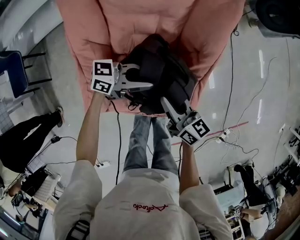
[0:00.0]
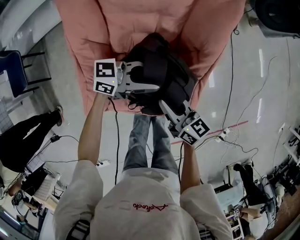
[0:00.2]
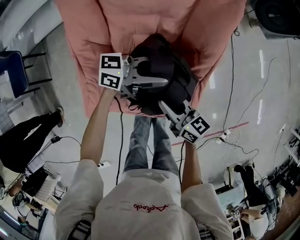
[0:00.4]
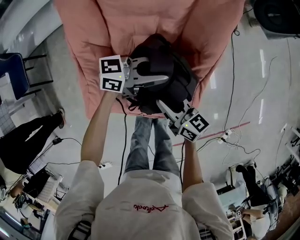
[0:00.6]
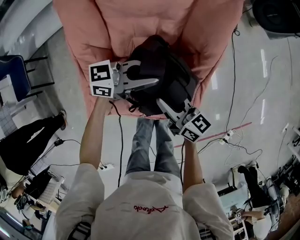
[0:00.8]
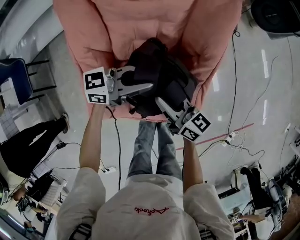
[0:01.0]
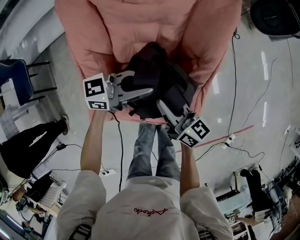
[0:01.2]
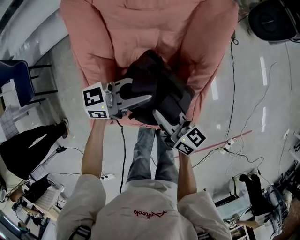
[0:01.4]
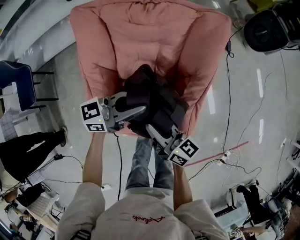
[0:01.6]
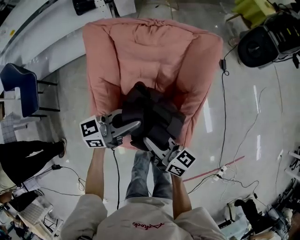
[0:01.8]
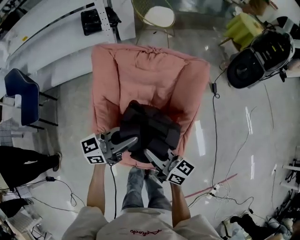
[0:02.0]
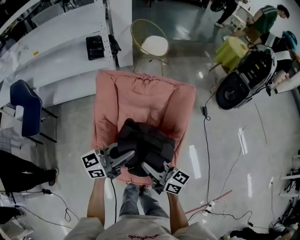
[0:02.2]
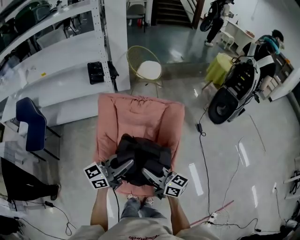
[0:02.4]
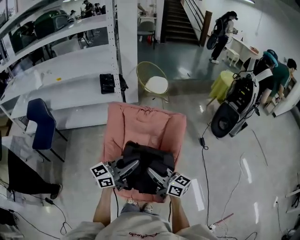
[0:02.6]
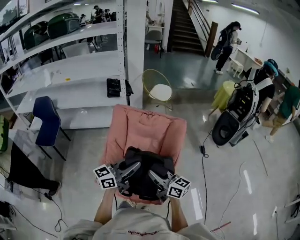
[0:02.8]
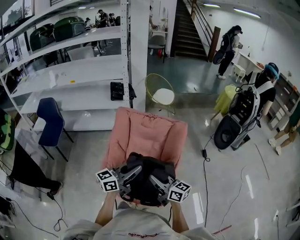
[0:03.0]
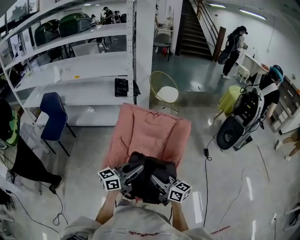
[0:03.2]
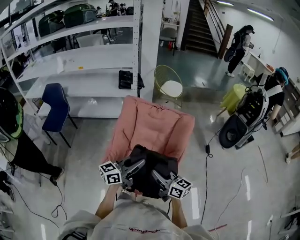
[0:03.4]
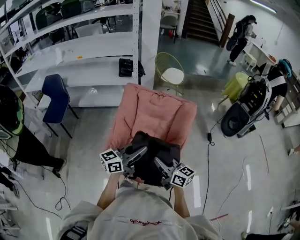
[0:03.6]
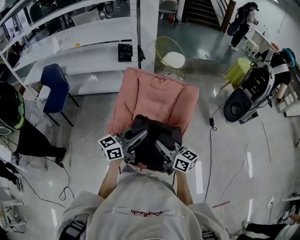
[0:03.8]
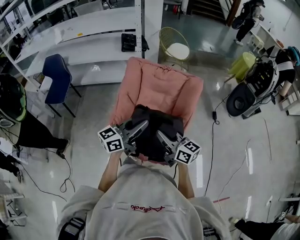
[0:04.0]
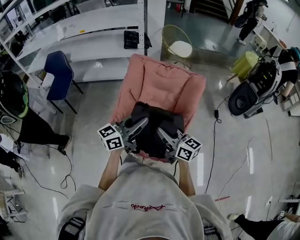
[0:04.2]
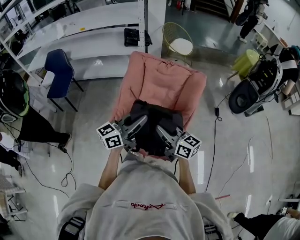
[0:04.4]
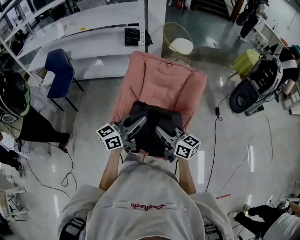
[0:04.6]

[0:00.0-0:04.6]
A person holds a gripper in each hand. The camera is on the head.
0:00.0 to 0:01.6: The right gripper moves upward, approximately 5 cm; the left gripper shifts roughly 10 cm upward, and swivels about 20 degrees.
0:01.6 to 0:03.0: The two grippers go approximately 30 cm upward and backward. The left gripper changes its angle by roughly 30 degrees.
0:03.0 to 0:04.6: The grippers move only a little.

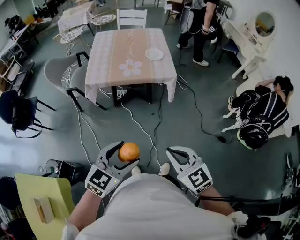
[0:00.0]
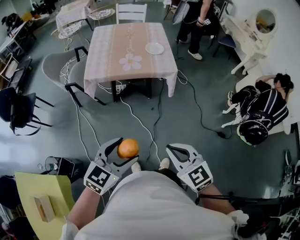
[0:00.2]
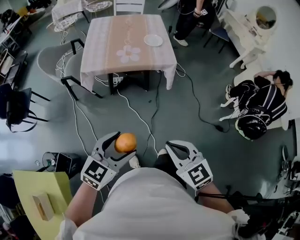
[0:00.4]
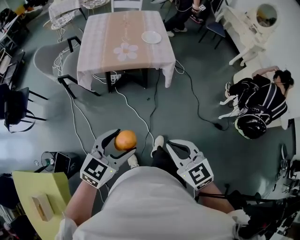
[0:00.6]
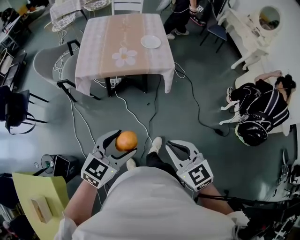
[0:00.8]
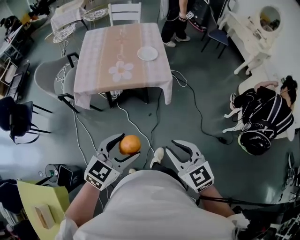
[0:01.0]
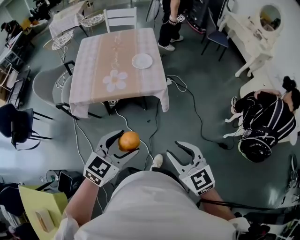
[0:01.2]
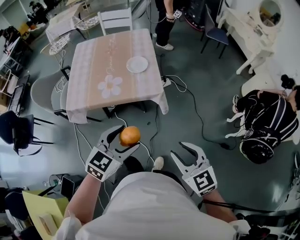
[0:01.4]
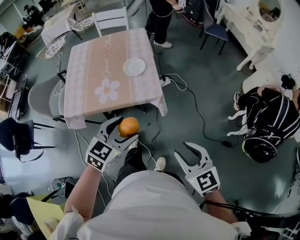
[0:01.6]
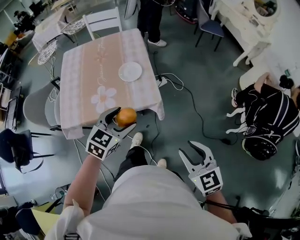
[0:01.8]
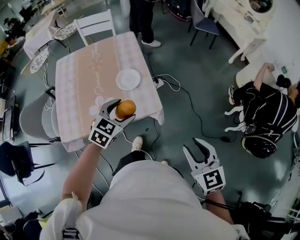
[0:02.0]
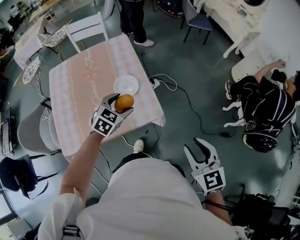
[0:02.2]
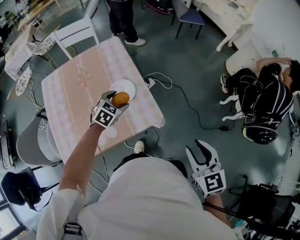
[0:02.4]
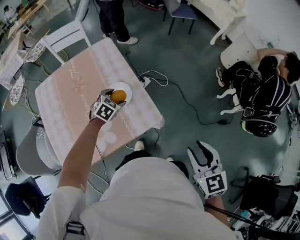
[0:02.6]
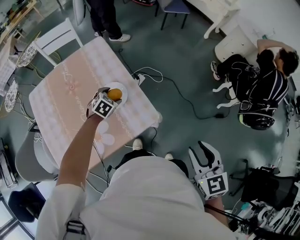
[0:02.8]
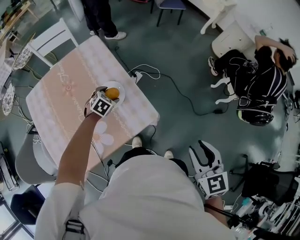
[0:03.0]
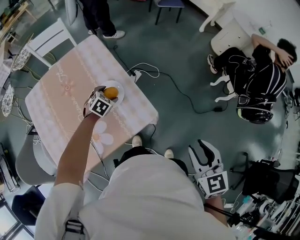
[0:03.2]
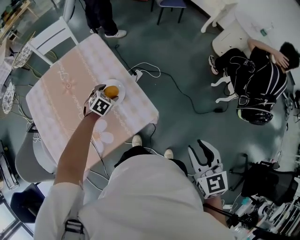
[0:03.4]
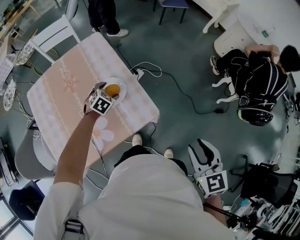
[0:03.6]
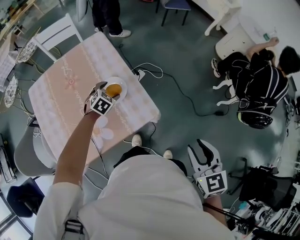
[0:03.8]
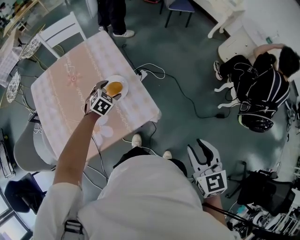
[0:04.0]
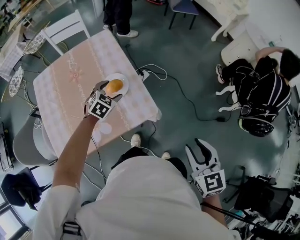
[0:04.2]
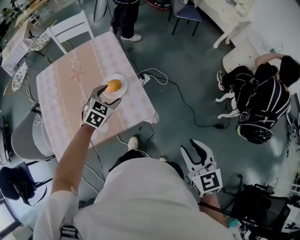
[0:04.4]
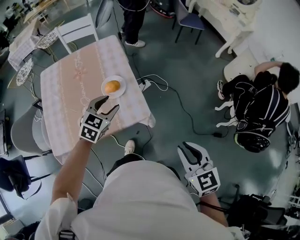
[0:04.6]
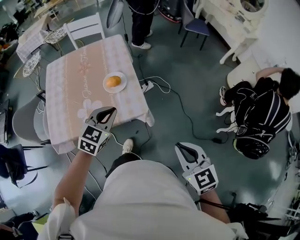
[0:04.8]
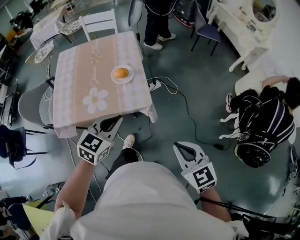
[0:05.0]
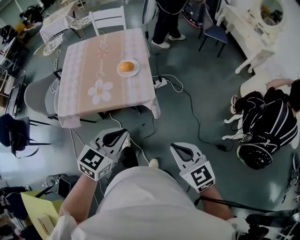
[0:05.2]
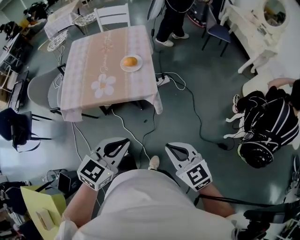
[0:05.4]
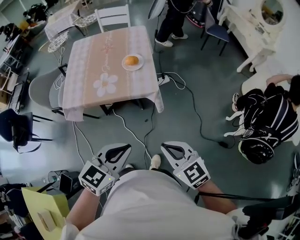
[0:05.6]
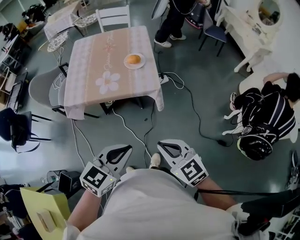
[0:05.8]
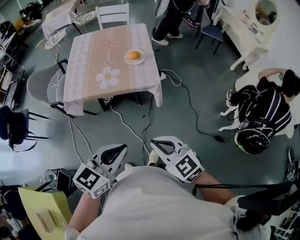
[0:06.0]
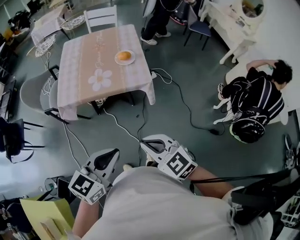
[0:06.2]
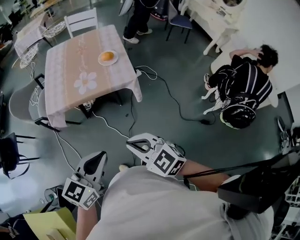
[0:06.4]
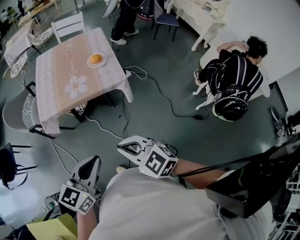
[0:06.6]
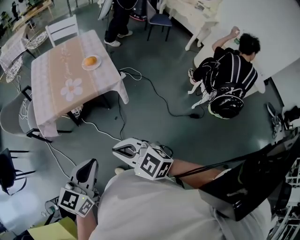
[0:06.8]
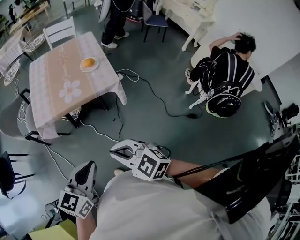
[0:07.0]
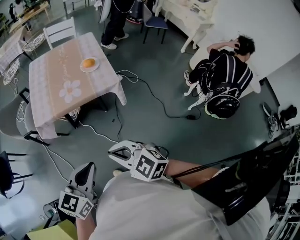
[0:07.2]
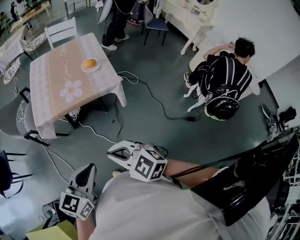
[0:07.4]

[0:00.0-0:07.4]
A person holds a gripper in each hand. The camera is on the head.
0:00.0 to 0:01.4: Both grippers travel together forward and to the right, roughly 30 cm. The right gripper opens up.
0:01.4 to 0:03.0: The right gripper ends up roughly 20 cm from where it was, and changes its angle by roughly 50 degrees, while the left gripper ends up roughly 60 cm from where it was, and tilts its fingers approximately 30 degrees downward.
0:03.0 to 0:04.4: The left gripper goes roughly 15 cm upward and backward.
0:04.4 to 0:06.0: The left gripper is displaced backward by some 50 cm, turns by roughly 40 degrees, and closes up. The right gripper is displaced backward and to the left by some 25 cm, swivels roughly 50 degrees, and closes.
0:06.0 to 0:07.4: The right gripper goes some 10 cm to the left. Meanwhile the left gripper moves to the left and backward, roughly 10 cm.

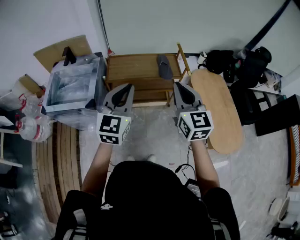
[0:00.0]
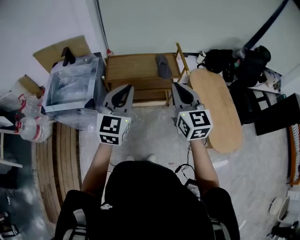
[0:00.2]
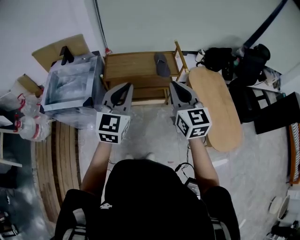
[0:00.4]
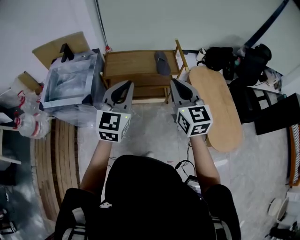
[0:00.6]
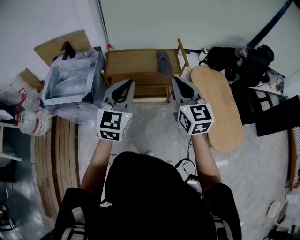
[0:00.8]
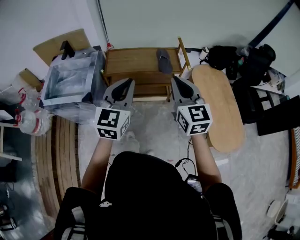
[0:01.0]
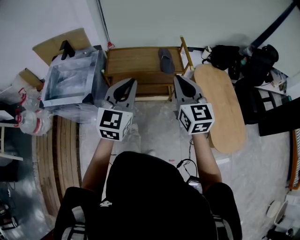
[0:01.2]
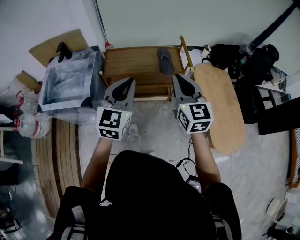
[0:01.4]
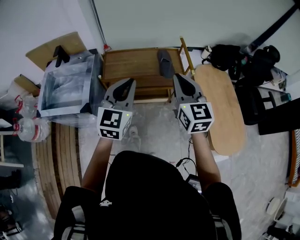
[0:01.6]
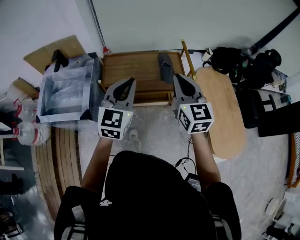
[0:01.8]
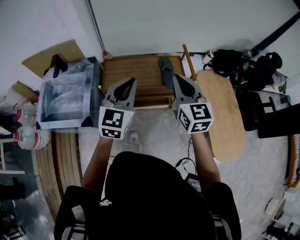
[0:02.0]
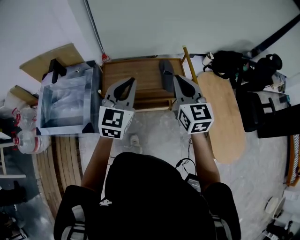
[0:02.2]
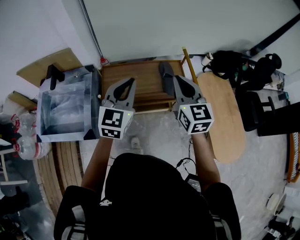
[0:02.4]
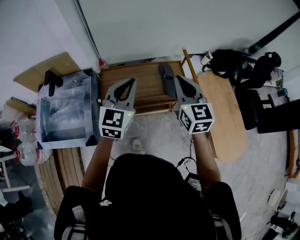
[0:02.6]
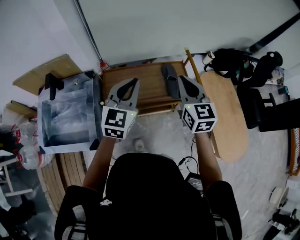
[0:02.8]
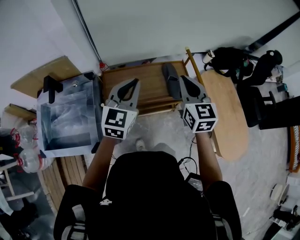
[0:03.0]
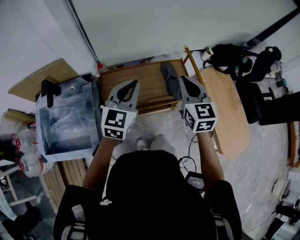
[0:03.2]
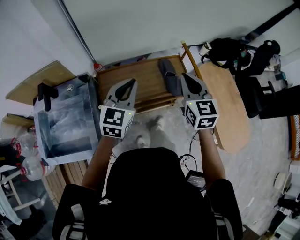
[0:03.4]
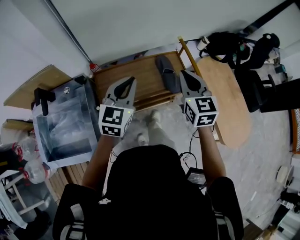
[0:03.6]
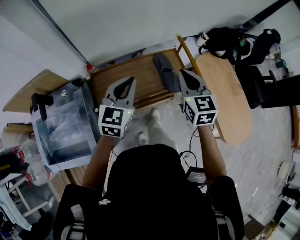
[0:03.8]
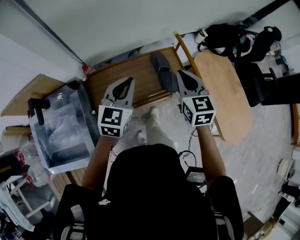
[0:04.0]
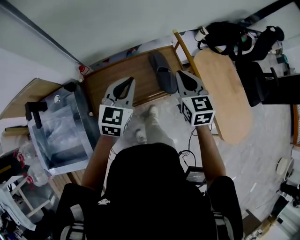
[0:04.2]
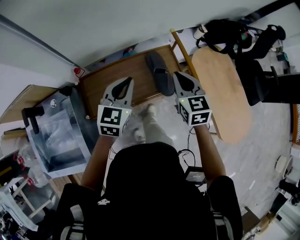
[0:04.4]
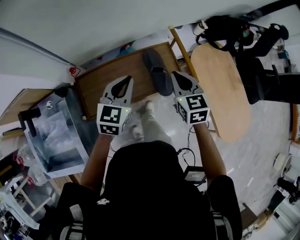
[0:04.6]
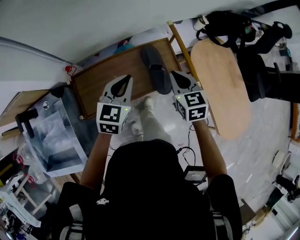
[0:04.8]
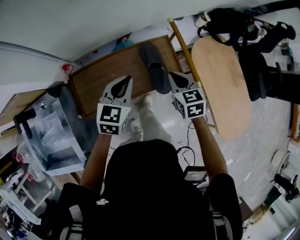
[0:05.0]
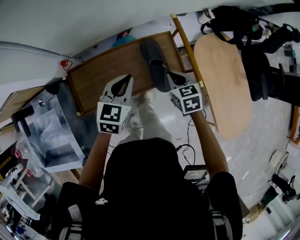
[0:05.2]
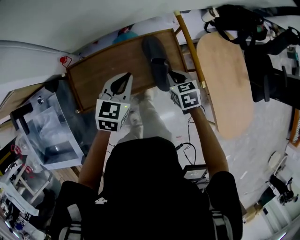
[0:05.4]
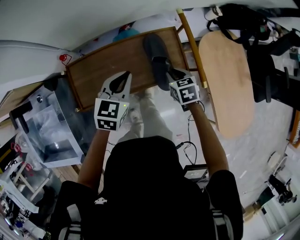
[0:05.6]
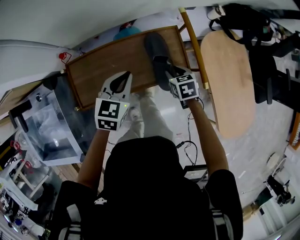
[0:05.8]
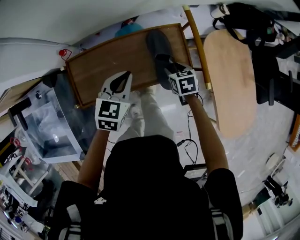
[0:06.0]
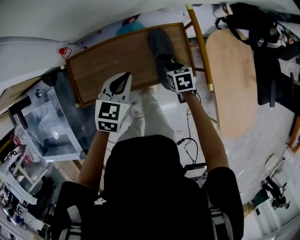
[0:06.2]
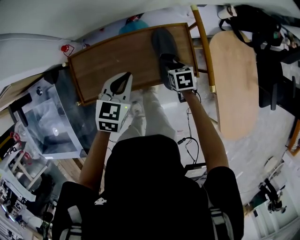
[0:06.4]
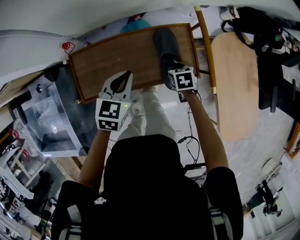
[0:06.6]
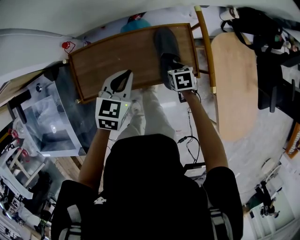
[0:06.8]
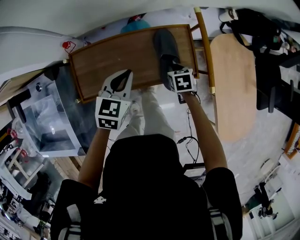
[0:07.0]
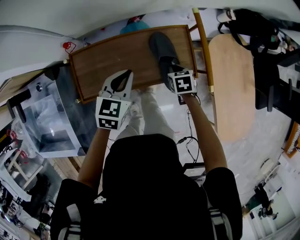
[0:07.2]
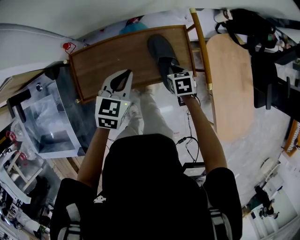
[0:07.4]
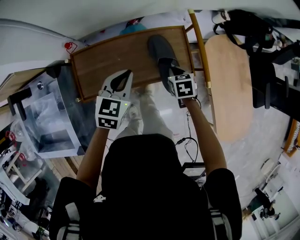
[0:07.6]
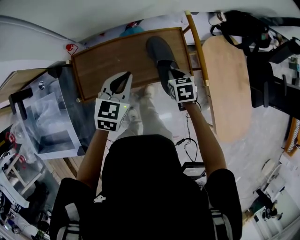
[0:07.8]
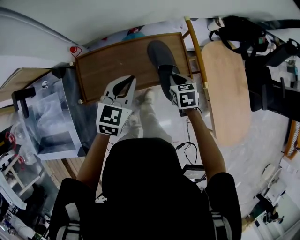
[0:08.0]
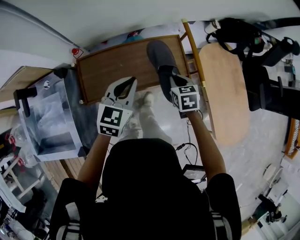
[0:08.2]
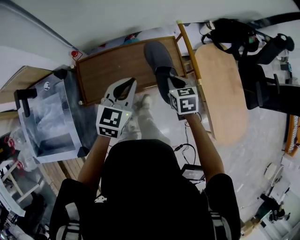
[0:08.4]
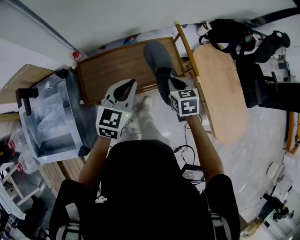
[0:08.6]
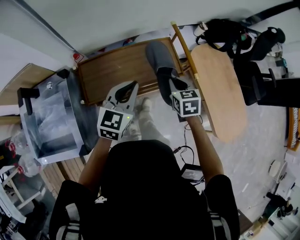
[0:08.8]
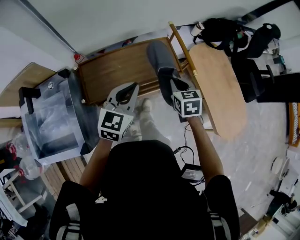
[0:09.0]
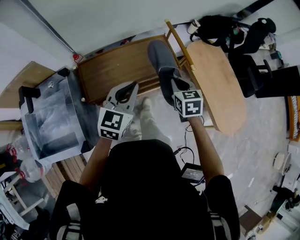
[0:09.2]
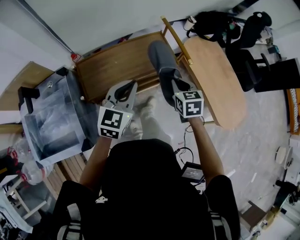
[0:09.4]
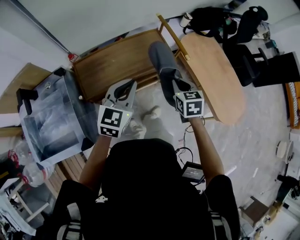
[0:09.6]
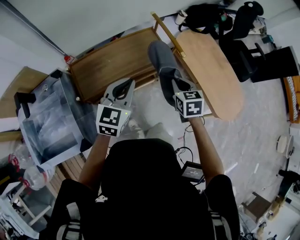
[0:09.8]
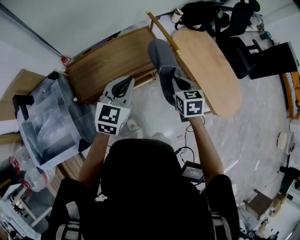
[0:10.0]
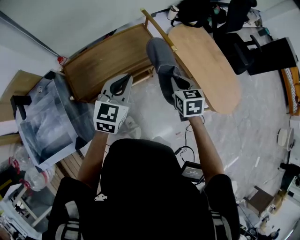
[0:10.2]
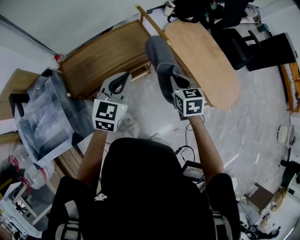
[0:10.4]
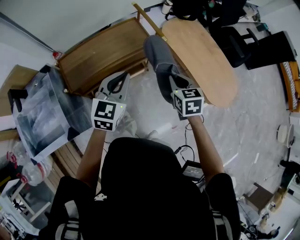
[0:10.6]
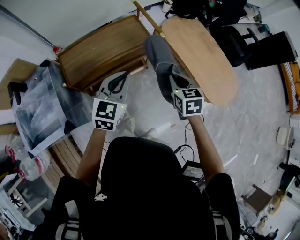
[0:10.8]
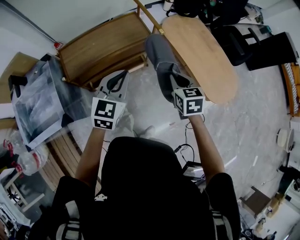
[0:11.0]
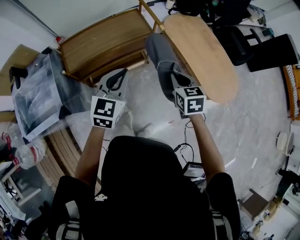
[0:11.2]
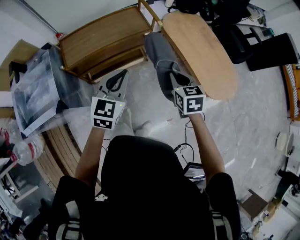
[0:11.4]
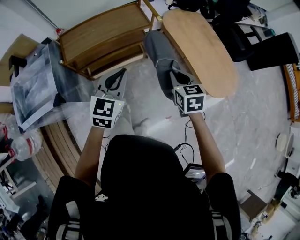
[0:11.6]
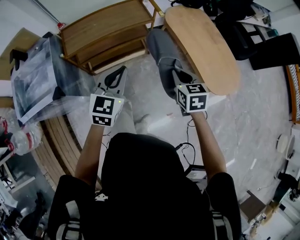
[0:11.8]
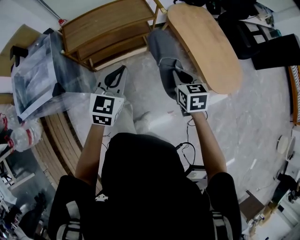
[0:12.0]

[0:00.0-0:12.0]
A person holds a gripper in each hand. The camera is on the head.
0:00.0 to 0:01.6: Both grippers travel together forward, roughly 10 cm.
0:01.6 to 0:03.0: Both grippers move forward, approximately 20 cm.
0:03.0 to 0:04.4: The right gripper is displaced downward, forward and to the right by some 20 cm; the left gripper travels forward, downward and to the right by some 20 cm.
0:04.4 to 0:06.0: The left gripper travels downward by roughly 15 cm, while the right gripper moves downward, about 30 cm, tips its fingers downward by roughly 30 degrees, and opens its fingers.
0:06.0 to 0:07.6: The right gripper closes up.
0:07.6 to 0:09.0: The right gripper travels upward and backward by roughly 20 cm, and rotates approximately 20 degrees. The left gripper travels backward and upward by approximately 20 cm.
0:09.0 to 0:10.4: The right gripper shifts about 20 cm to the right and backward. The left gripper moves to the right and backward, roughly 10 cm.
0:10.4 to 0:12.0: The two grippers go approximately 20 cm backward and to the right.
